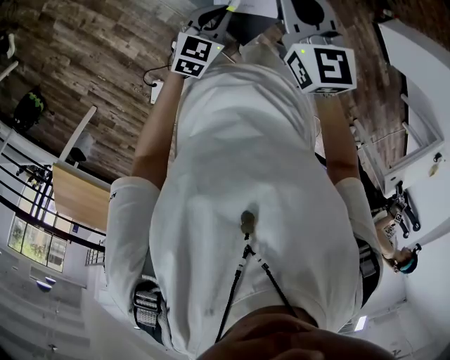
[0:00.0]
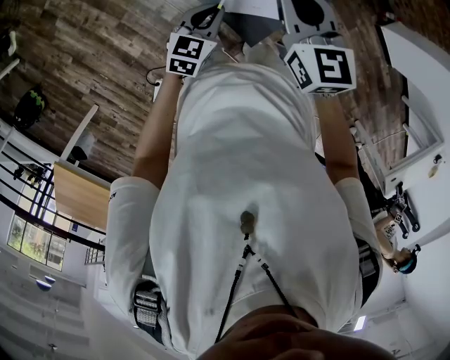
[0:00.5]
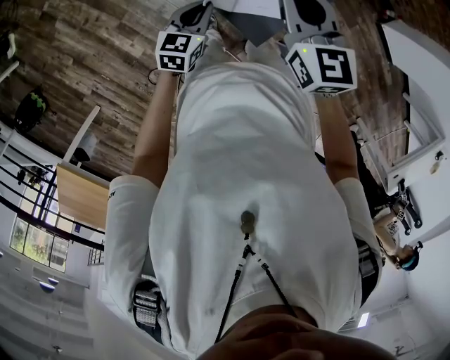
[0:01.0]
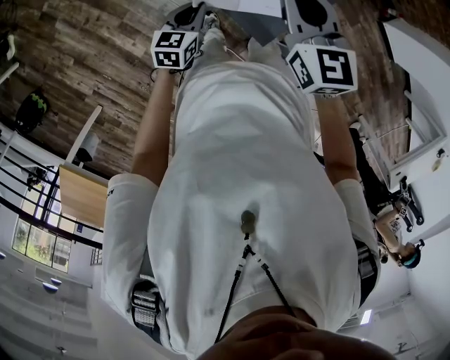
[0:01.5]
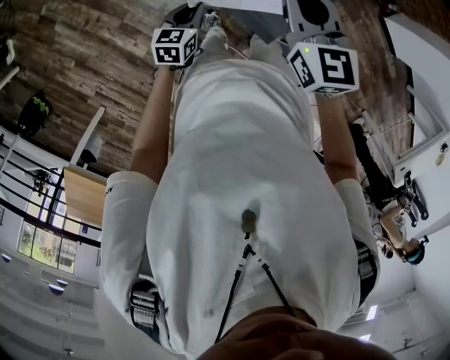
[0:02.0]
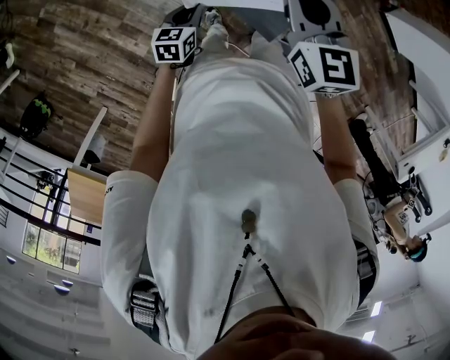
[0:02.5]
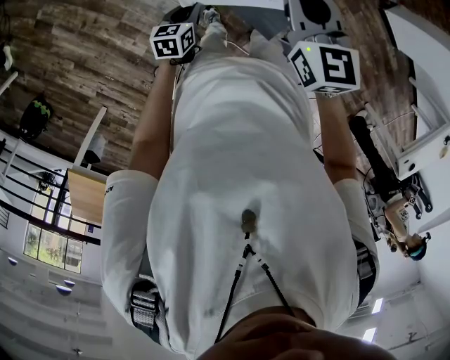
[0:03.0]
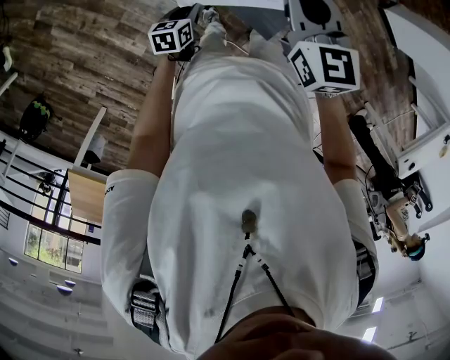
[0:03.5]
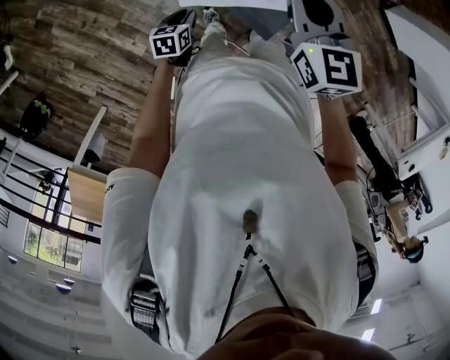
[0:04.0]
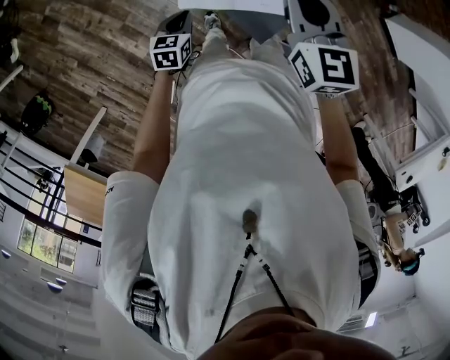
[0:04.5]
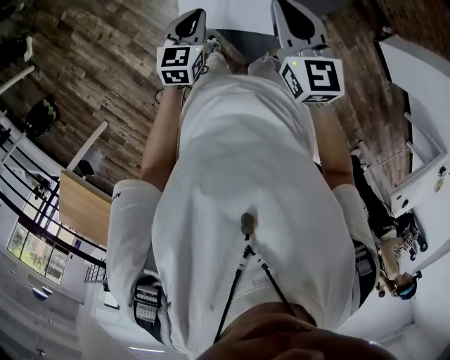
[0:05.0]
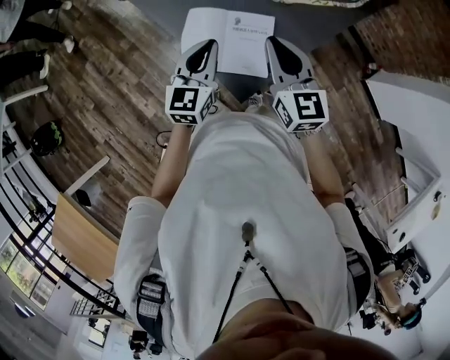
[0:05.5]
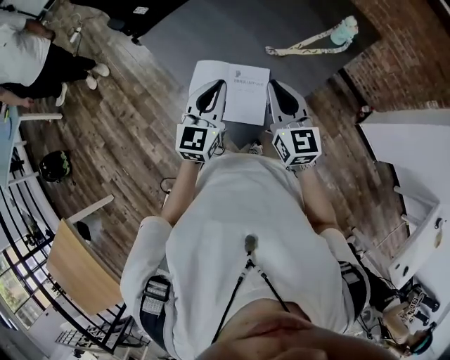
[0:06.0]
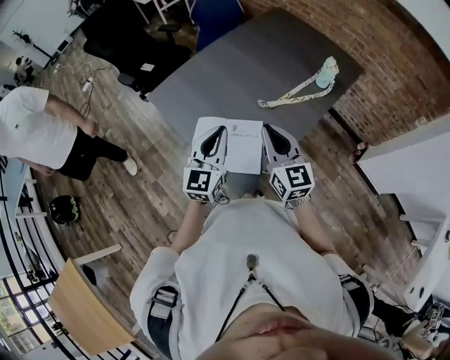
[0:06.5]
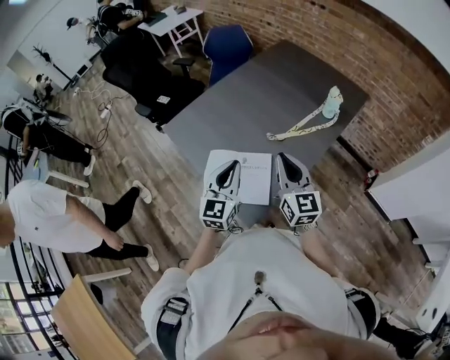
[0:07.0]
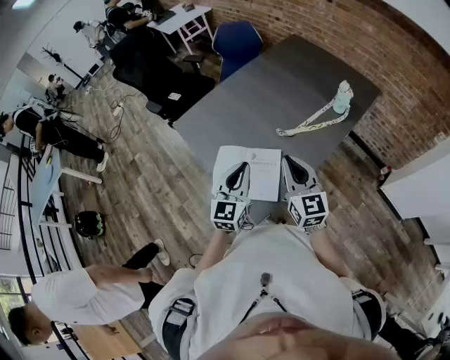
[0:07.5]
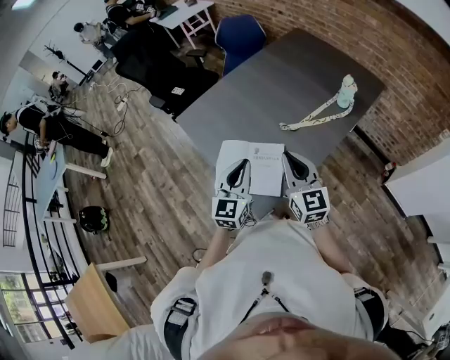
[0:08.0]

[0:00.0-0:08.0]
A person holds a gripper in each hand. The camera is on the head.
0:00.0 to 0:02.0: The right gripper shifts roughly 10 cm to the left; the left gripper goes some 15 cm to the left and downward.
0:02.0 to 0:04.0: The left gripper goes some 10 cm downward.
0:04.0 to 0:06.0: The right gripper moves upward, to the right and backward, about 20 cm; the left gripper goes some 50 cm upward and to the right, and points its fingers roughly 50 degrees further upward.
0:06.0 to 0:08.0: The grippers both shift to the right by some 5 cm.

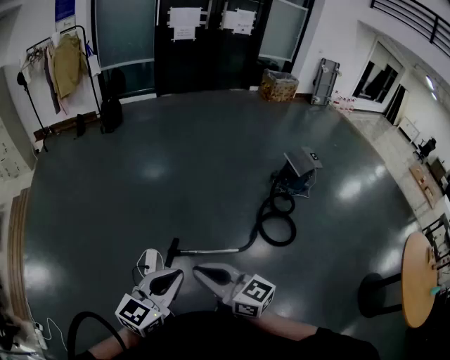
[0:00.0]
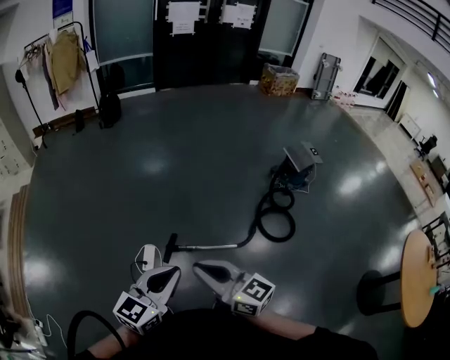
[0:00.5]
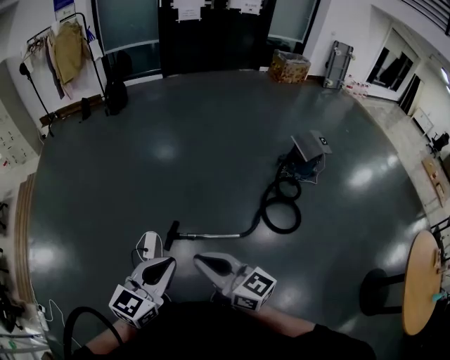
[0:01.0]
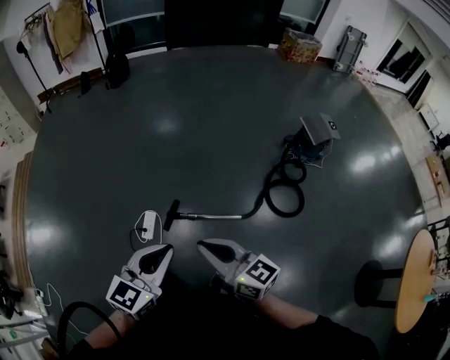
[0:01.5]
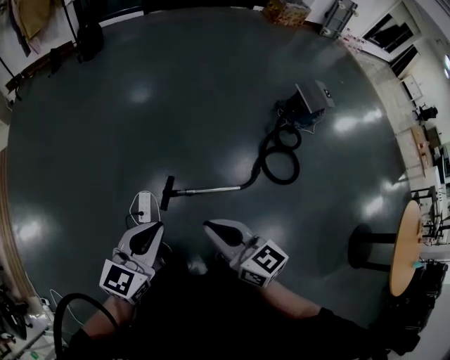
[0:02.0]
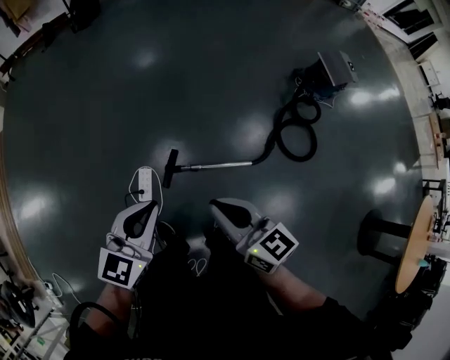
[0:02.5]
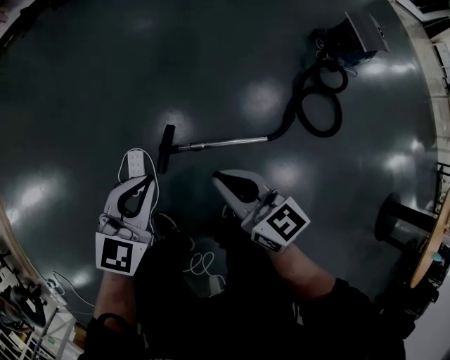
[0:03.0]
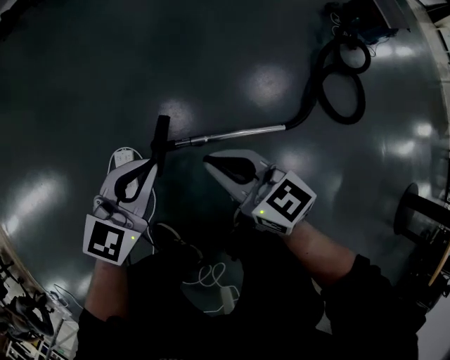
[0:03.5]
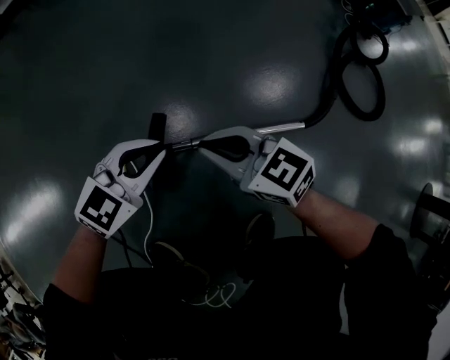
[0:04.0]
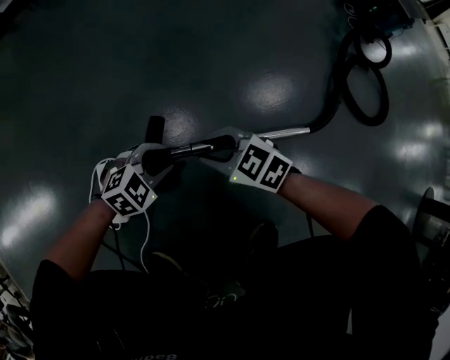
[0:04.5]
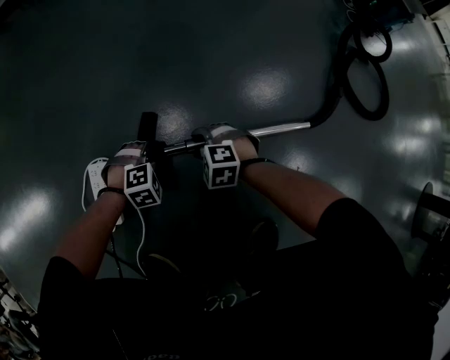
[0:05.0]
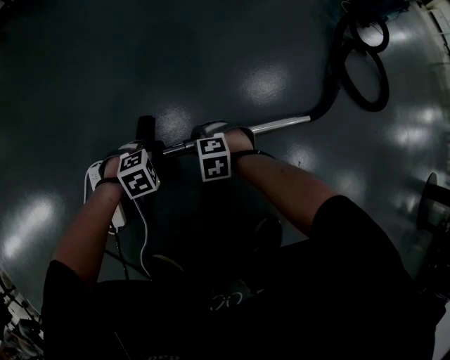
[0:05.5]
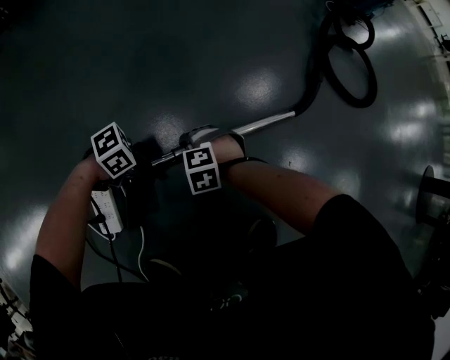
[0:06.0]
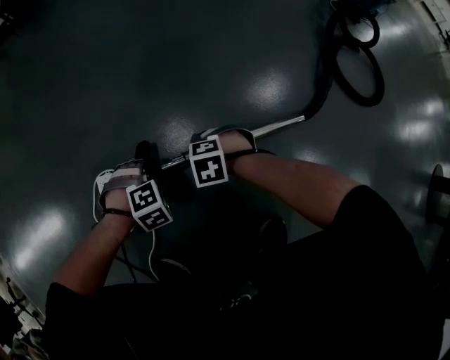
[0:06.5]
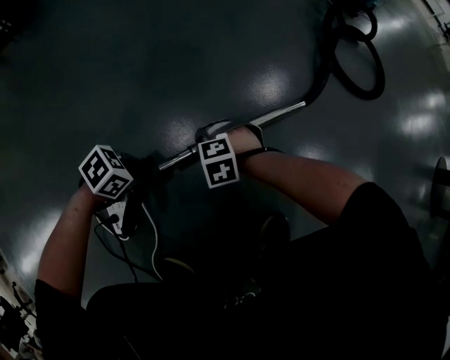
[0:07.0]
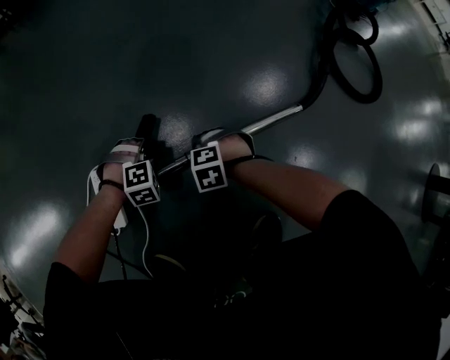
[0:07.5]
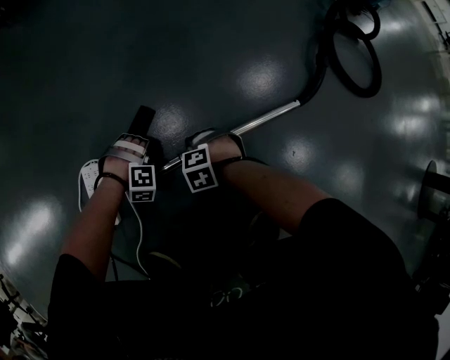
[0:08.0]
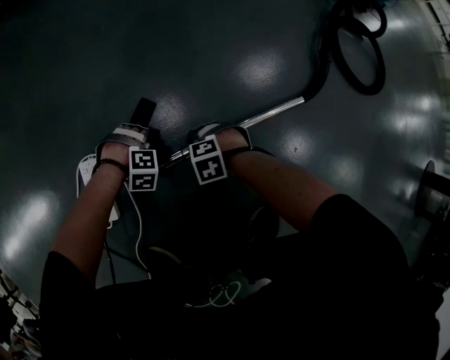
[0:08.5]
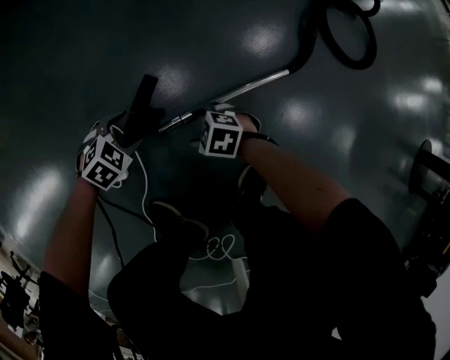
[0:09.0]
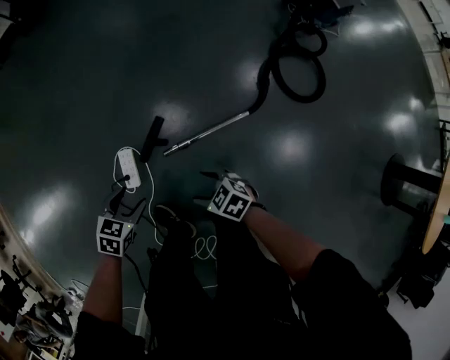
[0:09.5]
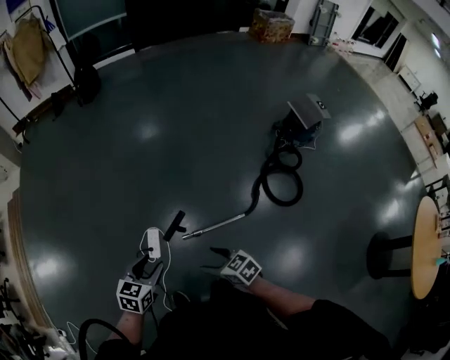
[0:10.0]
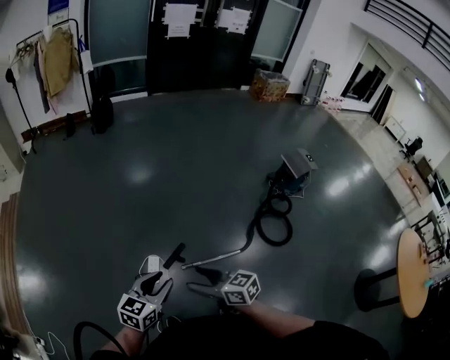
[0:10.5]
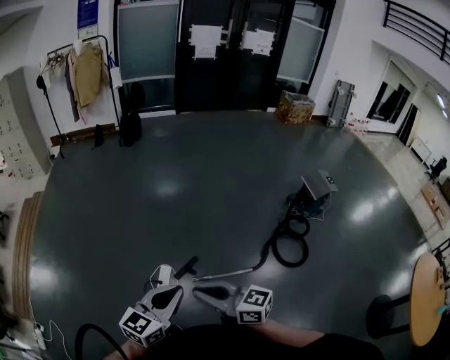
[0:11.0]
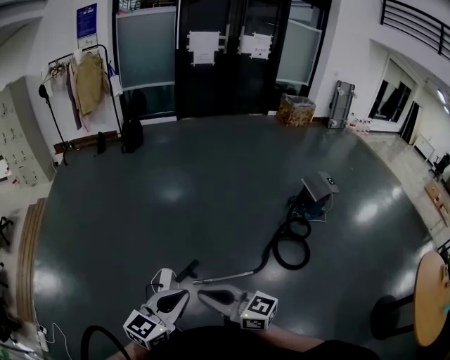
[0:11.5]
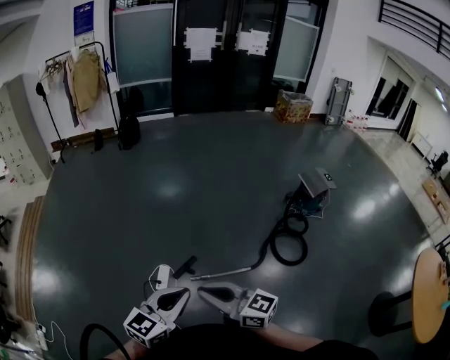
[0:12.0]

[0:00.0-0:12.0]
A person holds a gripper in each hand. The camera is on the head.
0:00.0 to 0:02.0: The left gripper shifts about 20 cm forward, downward and to the left. Meanwhile the right gripper shifts some 15 cm forward and downward.
0:02.0 to 0:04.0: Both grippers move downward, about 70 cm. The right gripper changes its angle by about 20 degrees; the left gripper rotates roughly 30 degrees.
0:04.0 to 0:06.0: The grippers both shift downward by approximately 25 cm. The right gripper tips its fingers downward by roughly 50 degrees, and opens. The left gripper swivels approximately 70 degrees, and opens up.
0:06.0 to 0:08.0: The right gripper travels downward by approximately 5 cm. Meanwhile the left gripper travels downward by roughly 10 cm, and points its fingers approximately 30 degrees further downward.
0:08.0 to 0:10.0: Both grippers move upward, roughly 80 cm. The right gripper tilts its fingers some 40 degrees upward, and opens up, while the left gripper rolls counterclockwise, seen from behind, by approximately 100 degrees, and opens, then closes again.
0:10.0 to 0:12.0: The left gripper travels upward and backward by roughly 30 cm, points its fingers about 30 degrees further upward, and closes up, while the right gripper heads upward, covering roughly 30 cm, angles its fingers upward, by some 40 degrees, and closes its fingers.

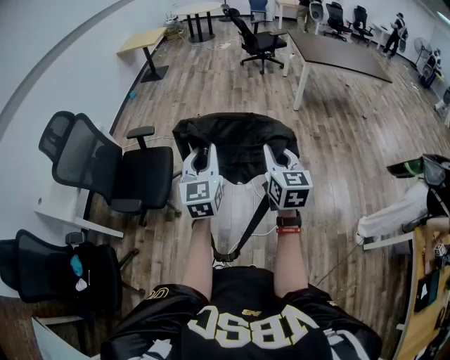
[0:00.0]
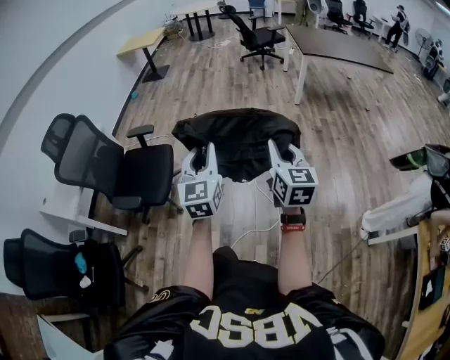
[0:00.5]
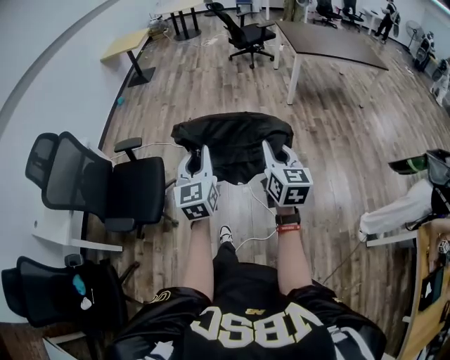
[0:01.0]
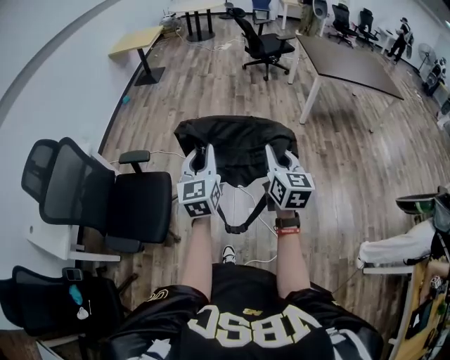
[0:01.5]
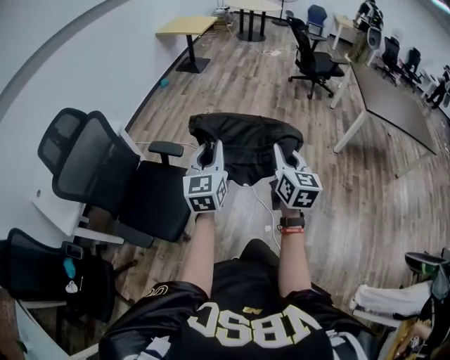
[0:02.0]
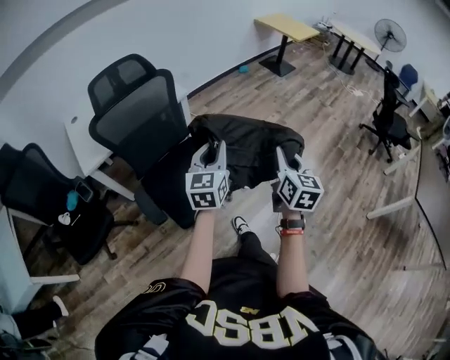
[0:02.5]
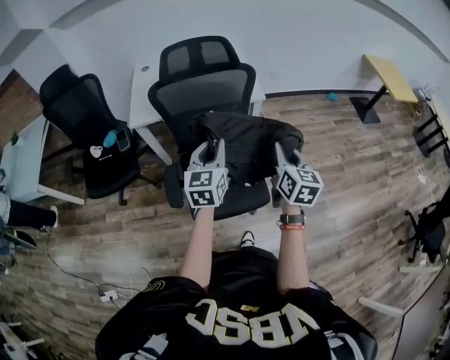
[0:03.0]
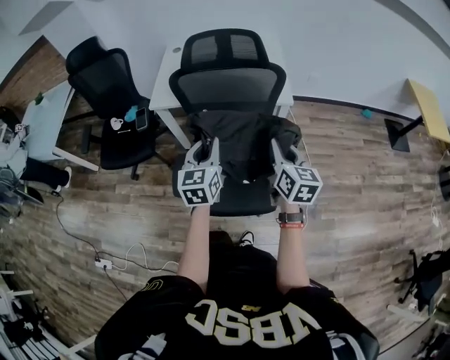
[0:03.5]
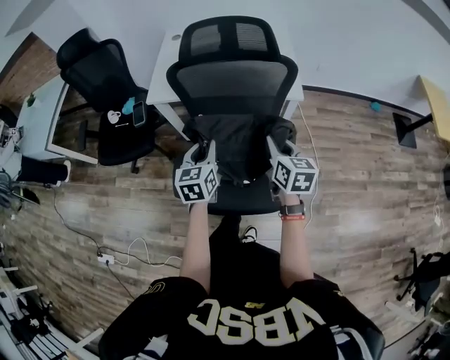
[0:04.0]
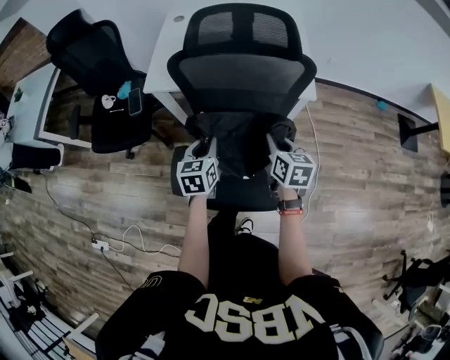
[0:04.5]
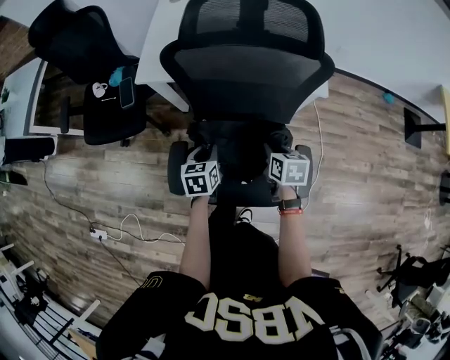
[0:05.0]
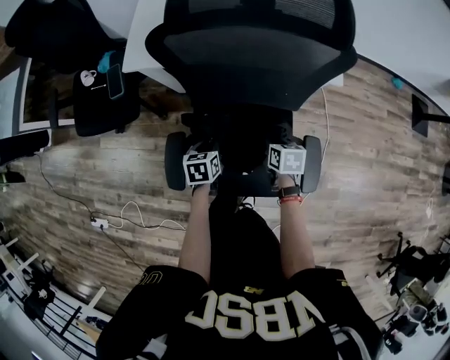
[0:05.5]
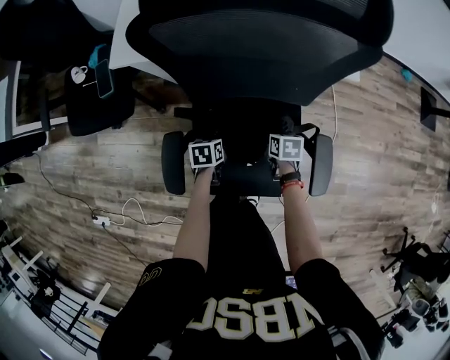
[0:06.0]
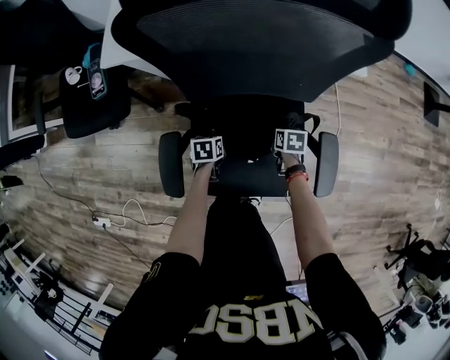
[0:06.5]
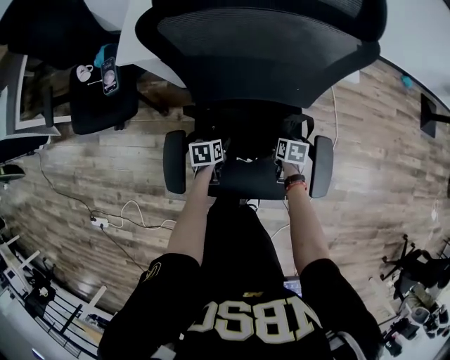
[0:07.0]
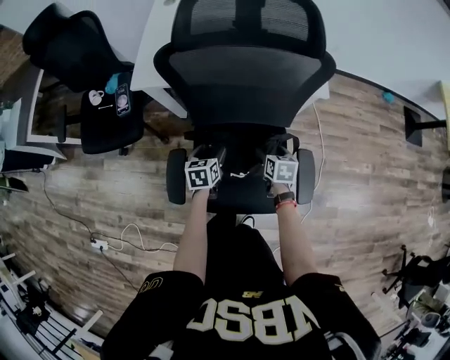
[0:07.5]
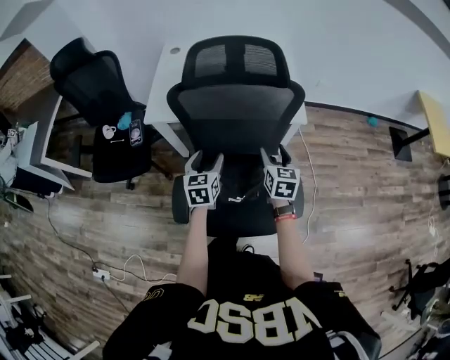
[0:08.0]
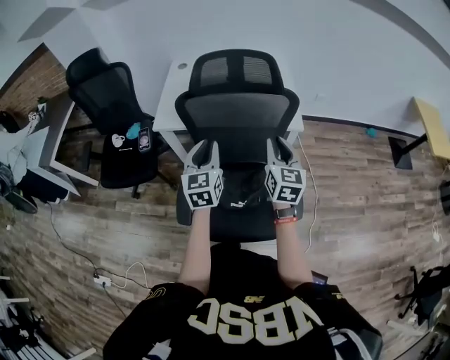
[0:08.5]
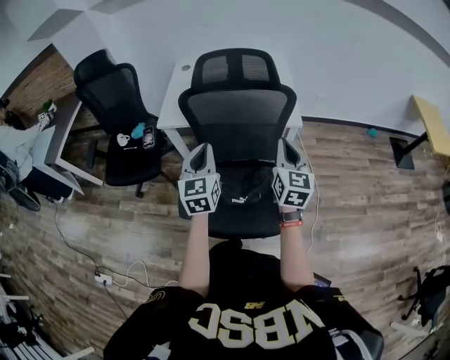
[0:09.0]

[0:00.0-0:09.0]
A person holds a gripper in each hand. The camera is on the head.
0:00.0 to 0:02.0: The right gripper shifts about 35 cm forward, while the left gripper heads forward and to the left, covering roughly 40 cm.
0:02.0 to 0:04.5: The pair of grippers is taken about 60 cm. The left gripper rotates about 80 degrees. The right gripper changes its angle by approximately 80 degrees.
0:04.5 to 0:07.0: The two grippers go approximately 35 cm downward. The right gripper angles its fingers downward, by some 30 degrees, and opens; the left gripper tips its fingers downward by some 30 degrees, and opens.
0:07.0 to 0:09.0: Both grippers move upward, roughly 50 cm. The right gripper angles its fingers upward, by about 60 degrees, and closes up. Meanwhile the left gripper tilts its fingers some 50 degrees upward, and closes.
